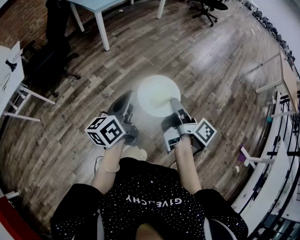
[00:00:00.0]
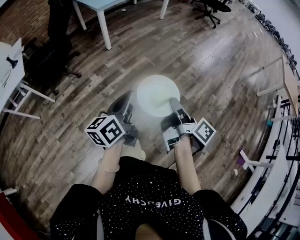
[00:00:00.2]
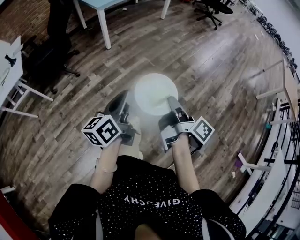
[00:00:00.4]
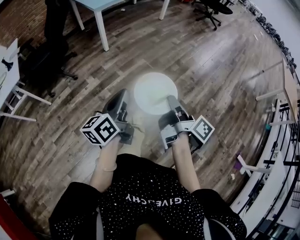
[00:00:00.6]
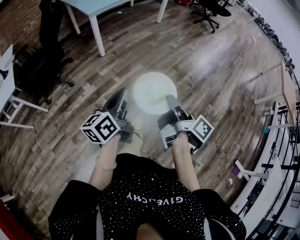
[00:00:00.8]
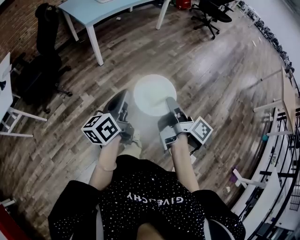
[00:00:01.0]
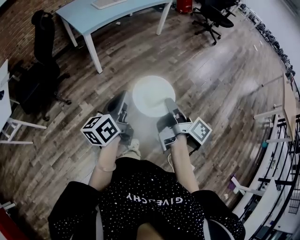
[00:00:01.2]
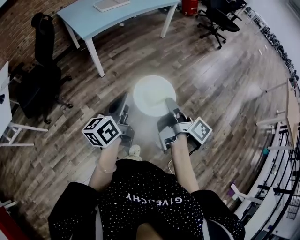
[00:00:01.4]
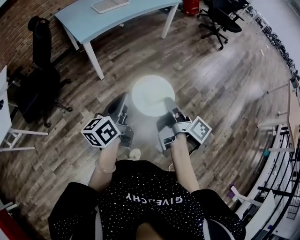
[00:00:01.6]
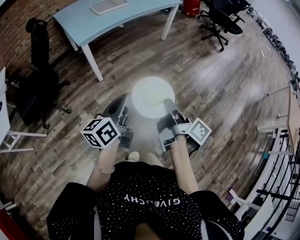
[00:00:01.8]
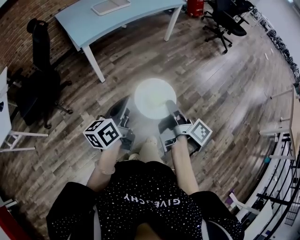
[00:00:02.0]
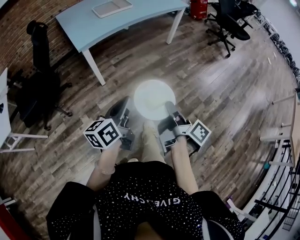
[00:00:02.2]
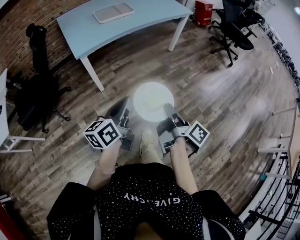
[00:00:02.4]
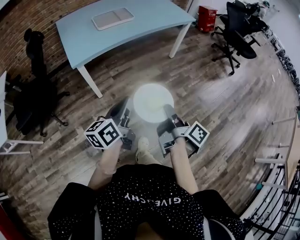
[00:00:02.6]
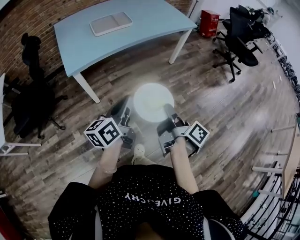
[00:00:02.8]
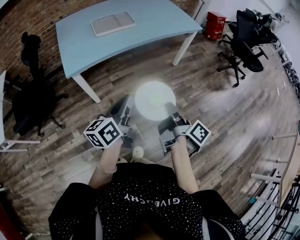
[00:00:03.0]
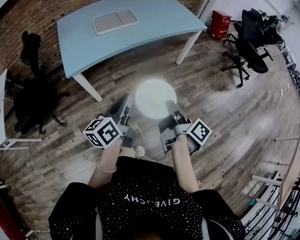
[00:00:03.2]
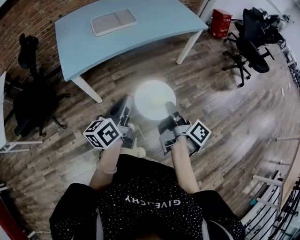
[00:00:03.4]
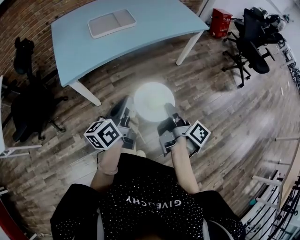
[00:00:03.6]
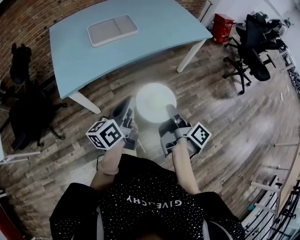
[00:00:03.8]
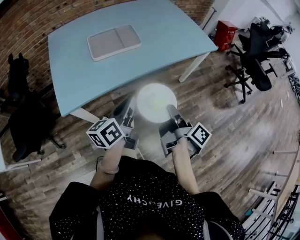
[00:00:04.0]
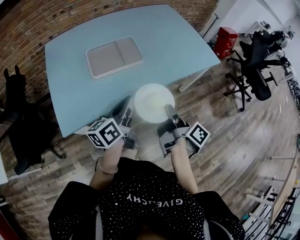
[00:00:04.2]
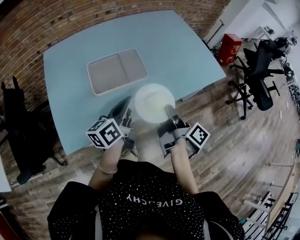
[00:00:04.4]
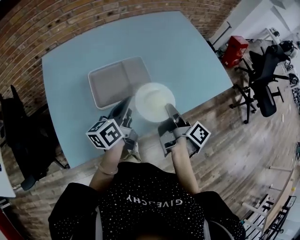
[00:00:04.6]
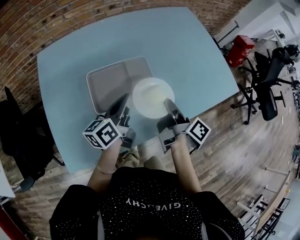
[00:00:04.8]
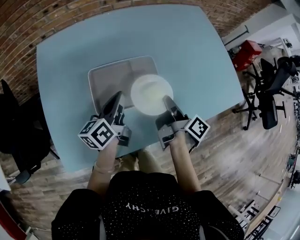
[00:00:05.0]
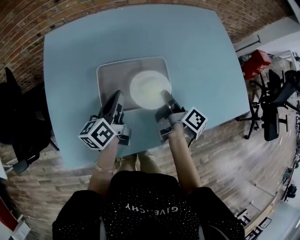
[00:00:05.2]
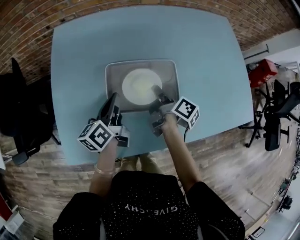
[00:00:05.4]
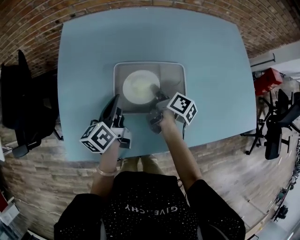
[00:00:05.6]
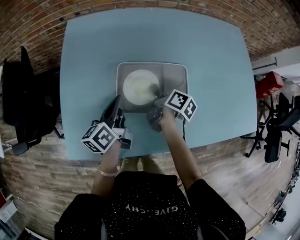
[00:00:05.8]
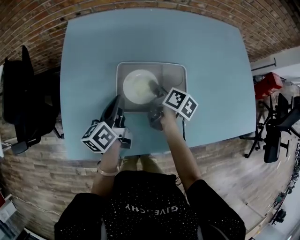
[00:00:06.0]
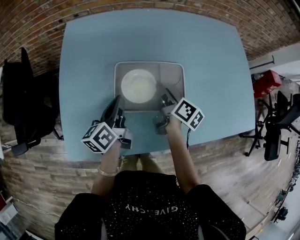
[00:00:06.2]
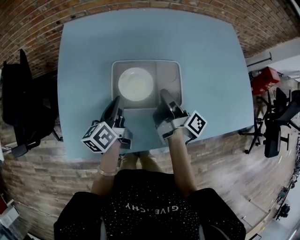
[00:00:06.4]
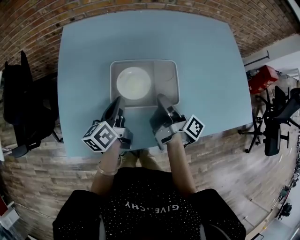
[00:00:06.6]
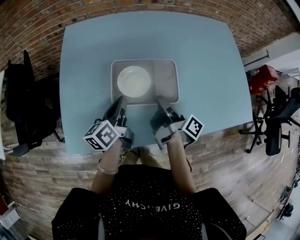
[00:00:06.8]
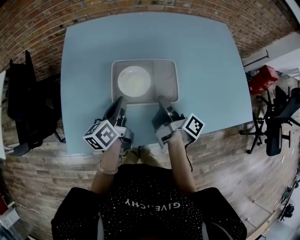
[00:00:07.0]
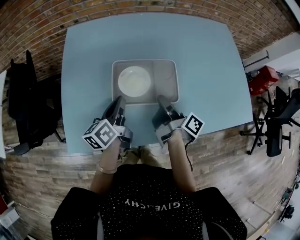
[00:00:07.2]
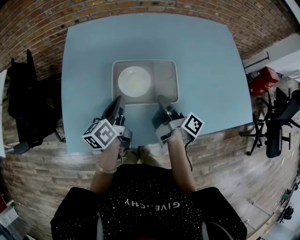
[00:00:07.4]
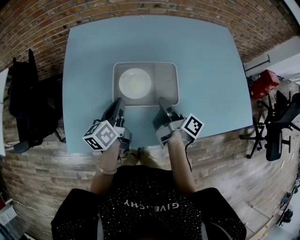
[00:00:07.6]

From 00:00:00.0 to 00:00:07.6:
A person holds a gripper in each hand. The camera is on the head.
From 00:00:00.0 to 00:00:01.6: The left gripper changes place by about 50 cm.
From 00:00:01.6 to 00:00:03.0: The left gripper moves about 40 cm.
From 00:00:03.0 to 00:00:04.6: The left gripper changes place by some 60 cm.
From 00:00:04.6 to 00:00:06.0: The left gripper ends up some 20 cm from where it was, and turns by approximately 30 degrees.
From 00:00:06.0 to 00:00:07.6: The left gripper shifts by roughly 5 cm.

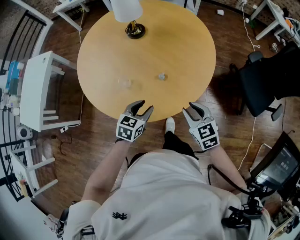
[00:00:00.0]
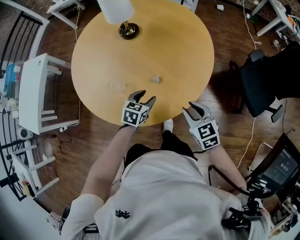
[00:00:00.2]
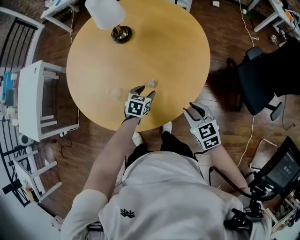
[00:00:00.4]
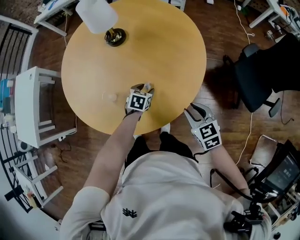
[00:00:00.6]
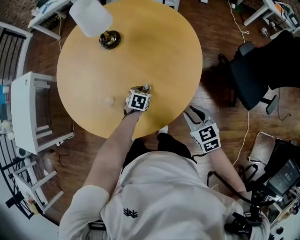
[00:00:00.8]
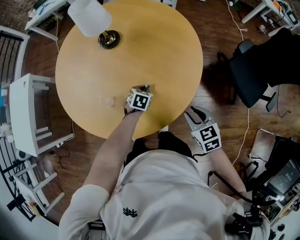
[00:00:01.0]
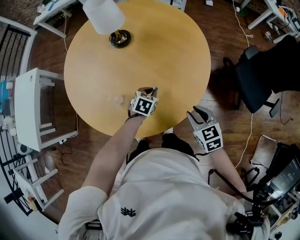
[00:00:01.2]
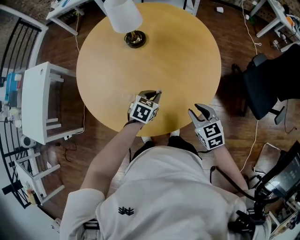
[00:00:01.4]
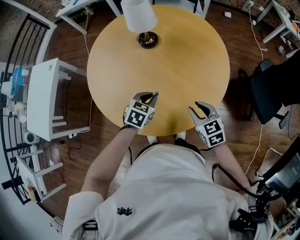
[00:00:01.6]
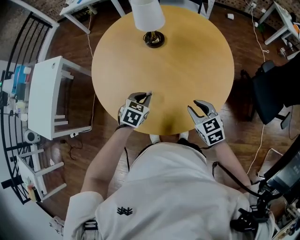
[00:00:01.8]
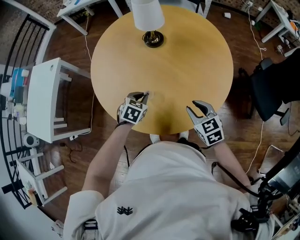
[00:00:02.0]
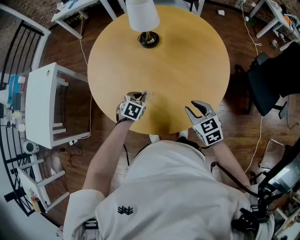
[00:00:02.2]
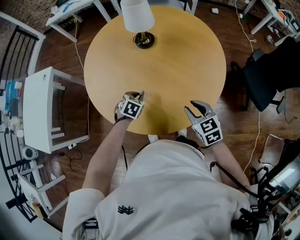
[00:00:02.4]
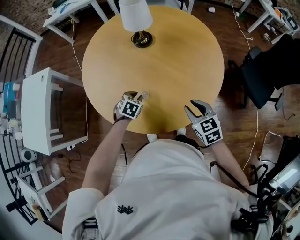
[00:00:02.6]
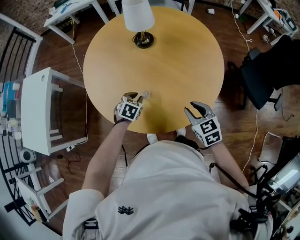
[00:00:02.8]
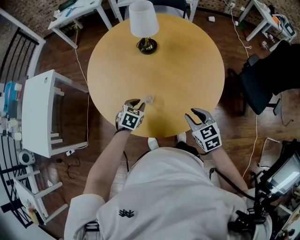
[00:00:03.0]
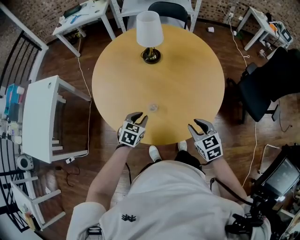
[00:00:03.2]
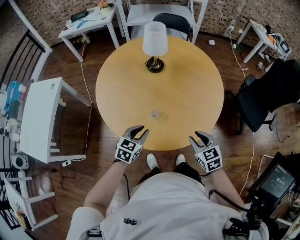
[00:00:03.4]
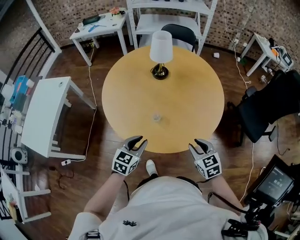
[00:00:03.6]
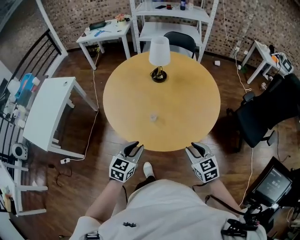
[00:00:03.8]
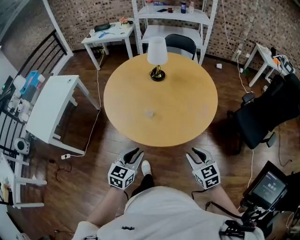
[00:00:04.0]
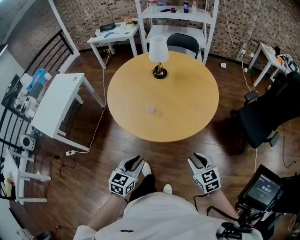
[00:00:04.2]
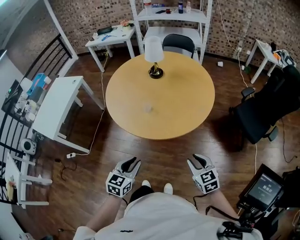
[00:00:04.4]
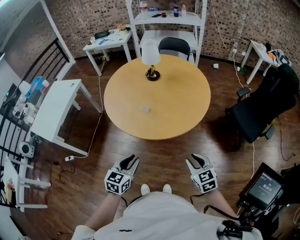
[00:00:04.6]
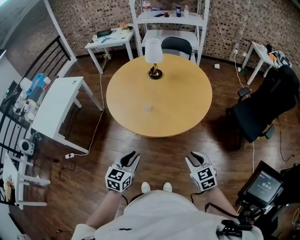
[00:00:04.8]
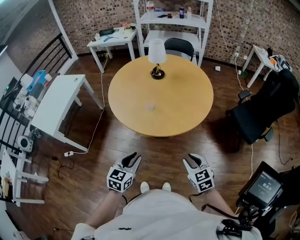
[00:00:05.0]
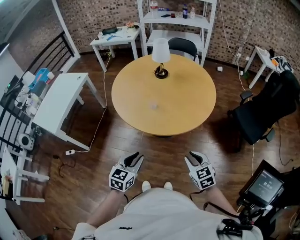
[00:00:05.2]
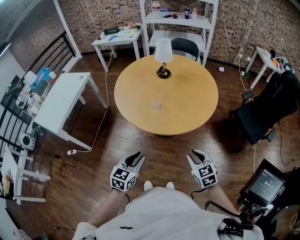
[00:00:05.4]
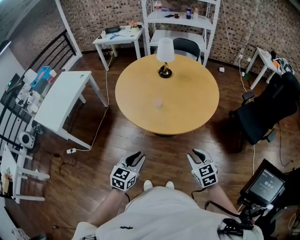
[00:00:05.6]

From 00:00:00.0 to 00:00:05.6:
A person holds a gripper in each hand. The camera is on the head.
From 00:00:00.0 to 00:00:01.4: The right gripper shifts approximately 10 cm forward, while the left gripper travels forward by approximately 15 cm, and closes up.
From 00:00:01.4 to 00:00:02.8: The right gripper moves to the left, approximately 10 cm. The left gripper moves to the left, some 20 cm.
From 00:00:02.8 to 00:00:04.2: The left gripper moves backward and upward, some 40 cm, and tilts its fingers approximately 30 degrees upward; the right gripper heads backward, covering about 25 cm.
From 00:00:04.2 to 00:00:05.6: Both grippers travel together to the left and backward, about 10 cm.

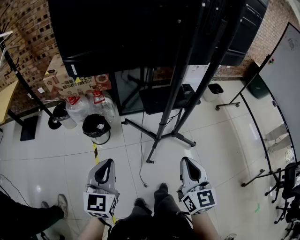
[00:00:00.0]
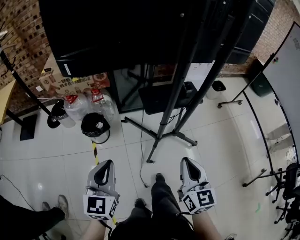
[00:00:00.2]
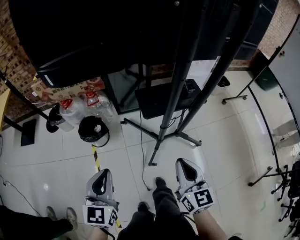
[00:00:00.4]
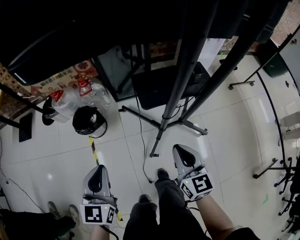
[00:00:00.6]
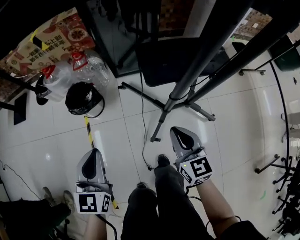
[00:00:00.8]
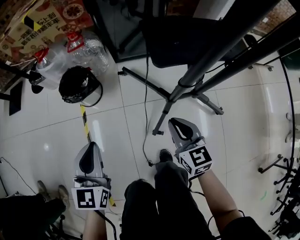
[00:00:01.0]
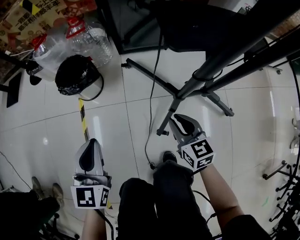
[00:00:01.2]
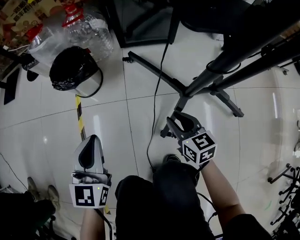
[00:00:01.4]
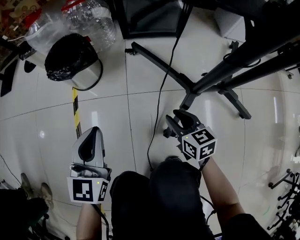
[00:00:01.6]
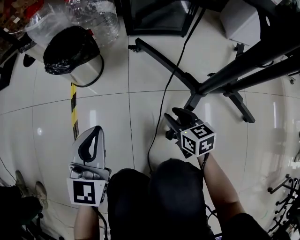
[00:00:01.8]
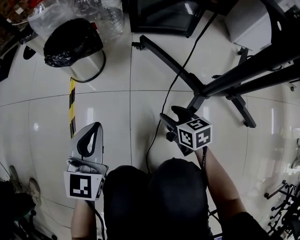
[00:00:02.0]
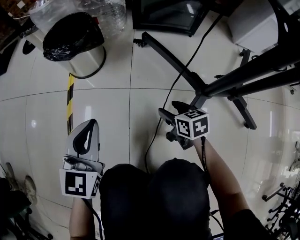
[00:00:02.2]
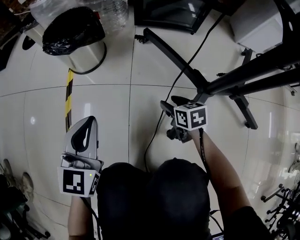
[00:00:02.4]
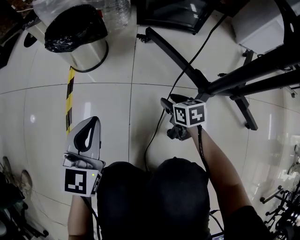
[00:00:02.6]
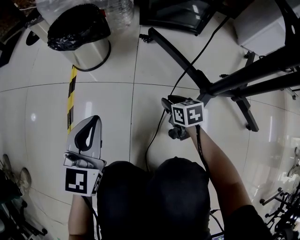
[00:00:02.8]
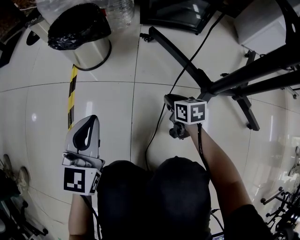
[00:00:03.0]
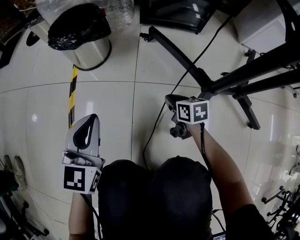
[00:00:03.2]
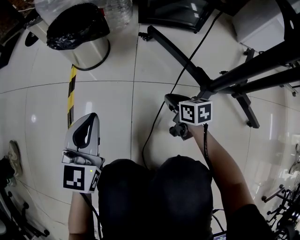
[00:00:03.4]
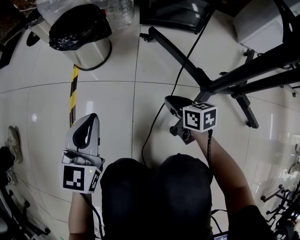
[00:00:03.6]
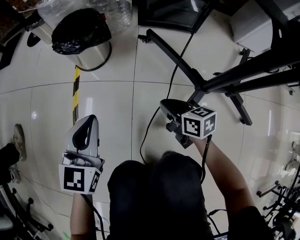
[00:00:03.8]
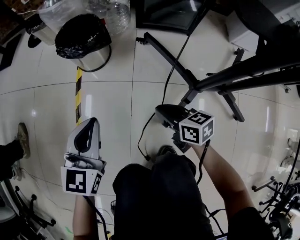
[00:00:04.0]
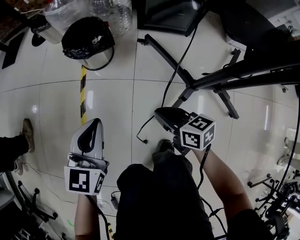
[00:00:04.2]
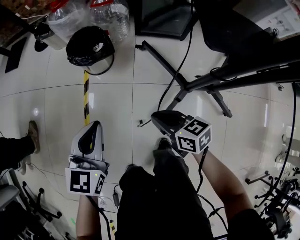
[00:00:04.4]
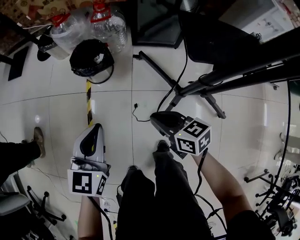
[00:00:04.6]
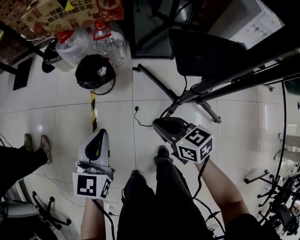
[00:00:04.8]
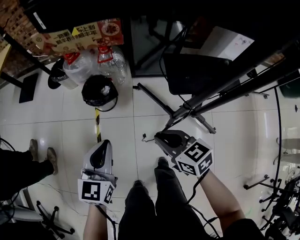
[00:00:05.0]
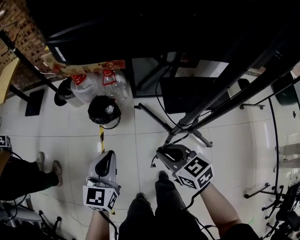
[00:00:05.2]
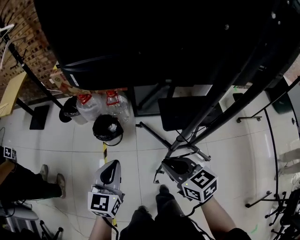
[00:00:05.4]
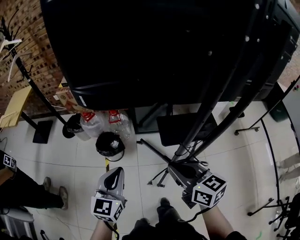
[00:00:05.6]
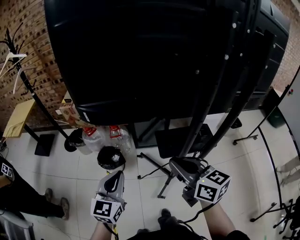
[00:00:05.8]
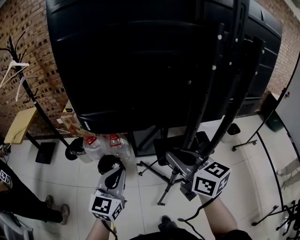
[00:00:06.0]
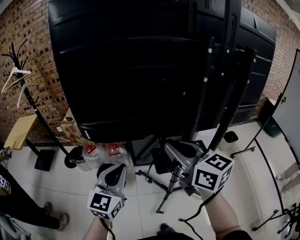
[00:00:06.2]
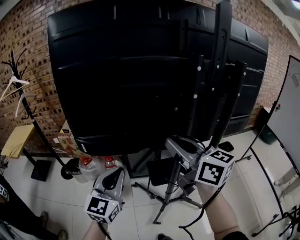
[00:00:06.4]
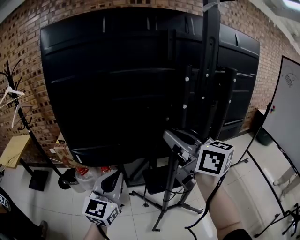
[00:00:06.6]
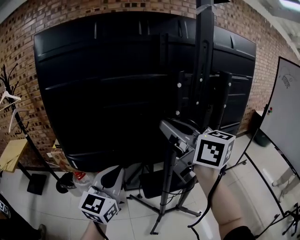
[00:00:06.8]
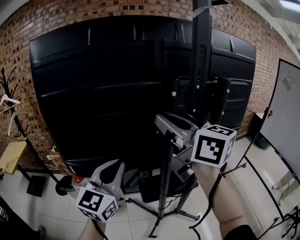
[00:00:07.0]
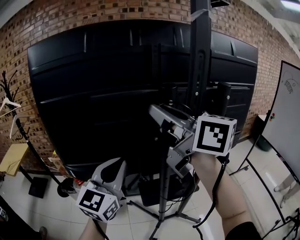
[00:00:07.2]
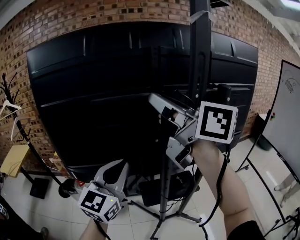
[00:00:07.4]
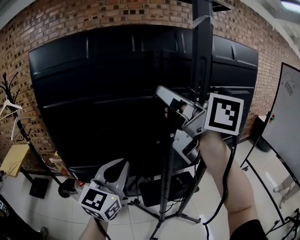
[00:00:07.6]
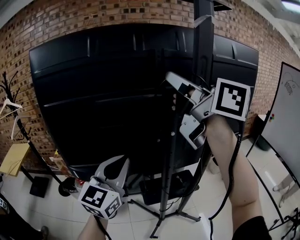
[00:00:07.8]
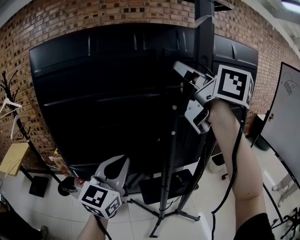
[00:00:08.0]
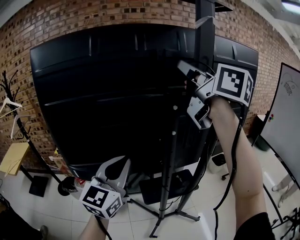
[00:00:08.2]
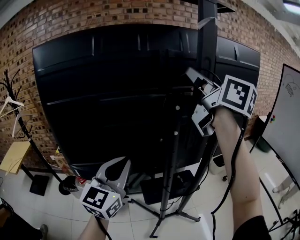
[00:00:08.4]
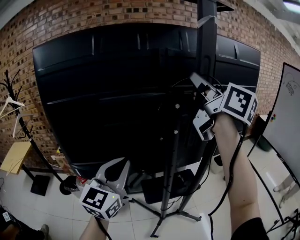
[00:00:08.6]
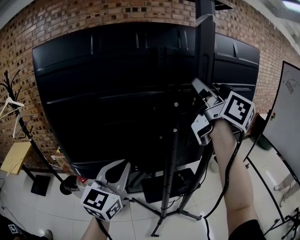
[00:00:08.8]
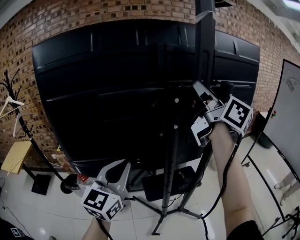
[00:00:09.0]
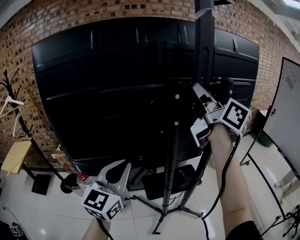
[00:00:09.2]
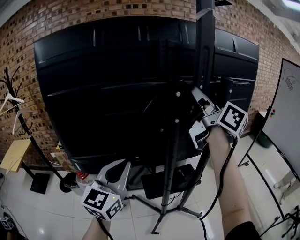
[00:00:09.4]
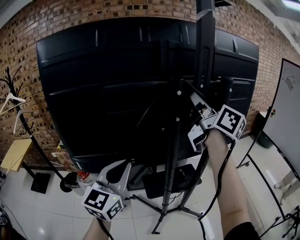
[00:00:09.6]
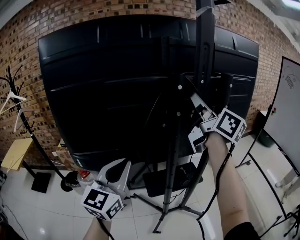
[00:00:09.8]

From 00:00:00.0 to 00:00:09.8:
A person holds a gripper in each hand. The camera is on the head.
From 00:00:00.0 to 00:00:01.4: The two grippers go some 50 cm downward. The right gripper changes its angle by approximately 40 degrees, and opens up.
From 00:00:01.4 to 00:00:02.8: The right gripper travels downward by some 20 cm, swivels some 20 degrees, and opens, then closes once more, while the left gripper travels downward by about 15 cm.
From 00:00:02.8 to 00:00:04.2: The left gripper goes roughly 15 cm upward. Meanwhile the right gripper heads upward, covering approximately 25 cm, changes its angle by roughly 20 degrees, and closes up.
From 00:00:04.2 to 00:00:05.6: Both grippers travel together upward, some 50 cm. The right gripper turns by about 30 degrees.
From 00:00:05.6 to 00:00:07.0: The right gripper moves upward, some 40 cm, and changes its angle by approximately 30 degrees, while the left gripper moves upward and to the right, roughly 35 cm, and rotates roughly 20 degrees.
From 00:00:07.0 to 00:00:08.4: The right gripper travels upward, to the right and forward by roughly 15 cm.
From 00:00:08.4 to 00:00:09.8: The left gripper ends up roughly 5 cm from where it was, while the right gripper travels downward by roughly 15 cm.
